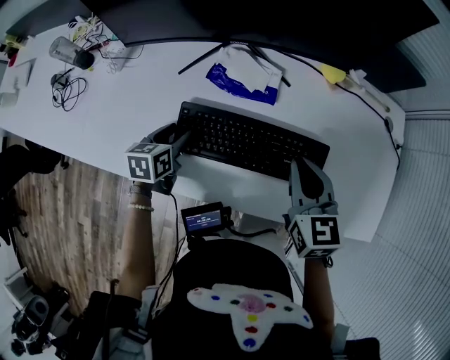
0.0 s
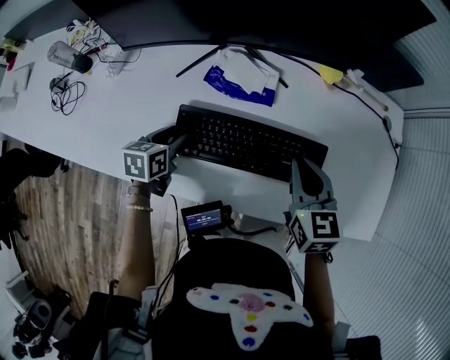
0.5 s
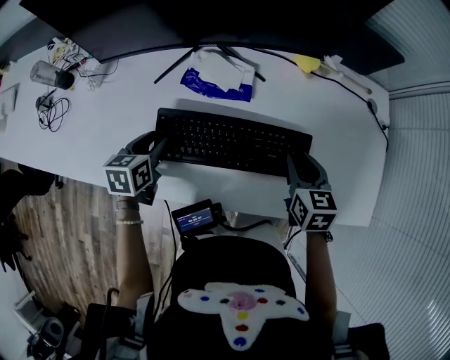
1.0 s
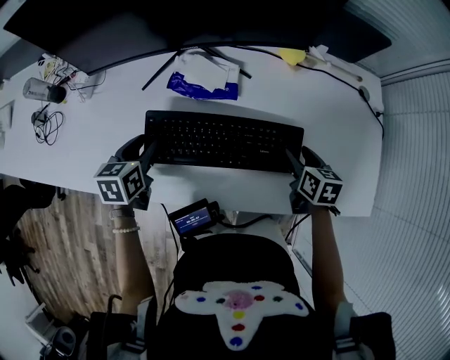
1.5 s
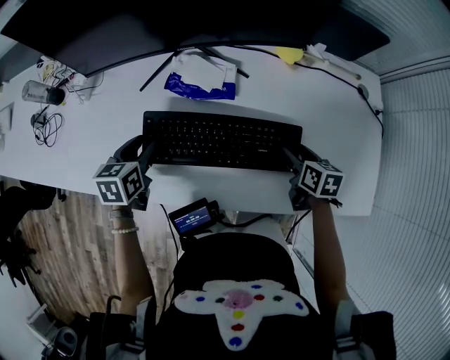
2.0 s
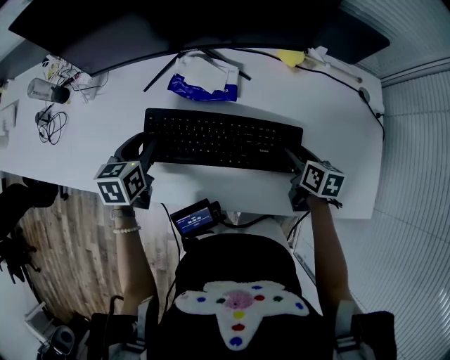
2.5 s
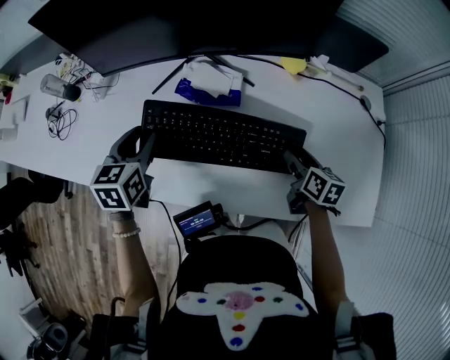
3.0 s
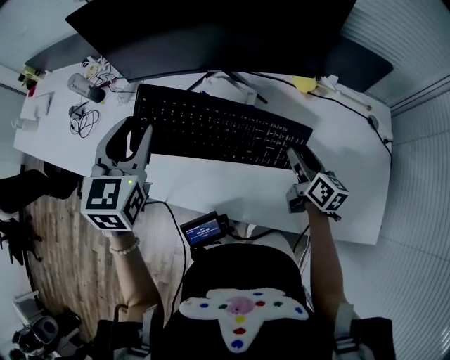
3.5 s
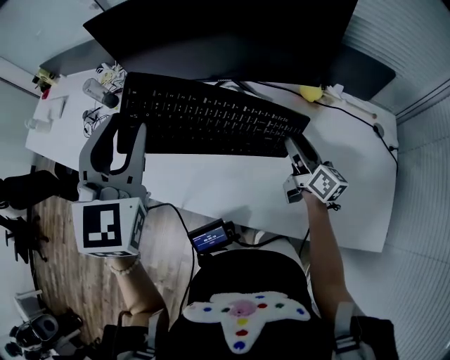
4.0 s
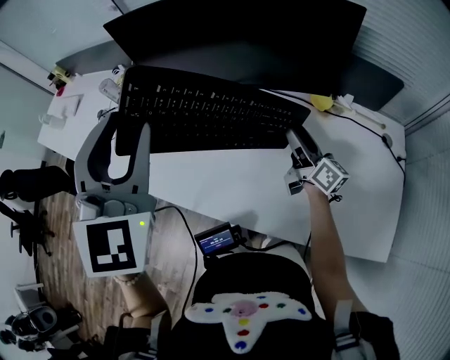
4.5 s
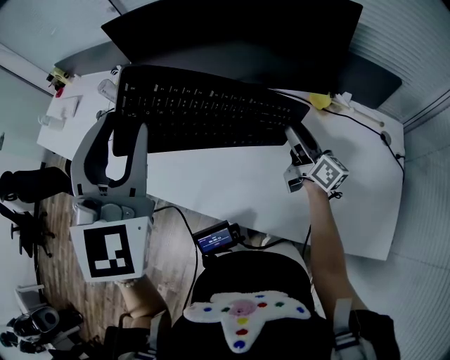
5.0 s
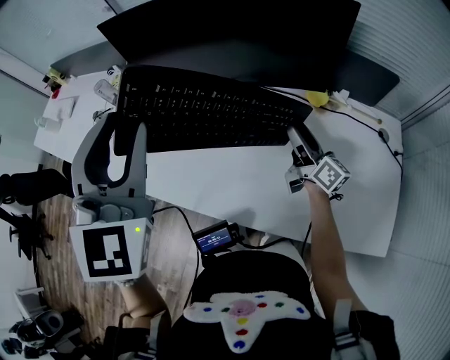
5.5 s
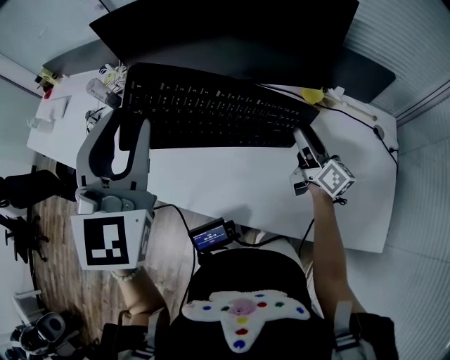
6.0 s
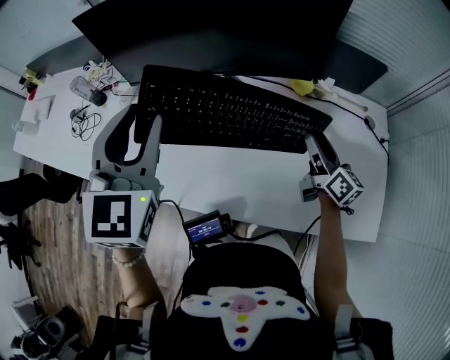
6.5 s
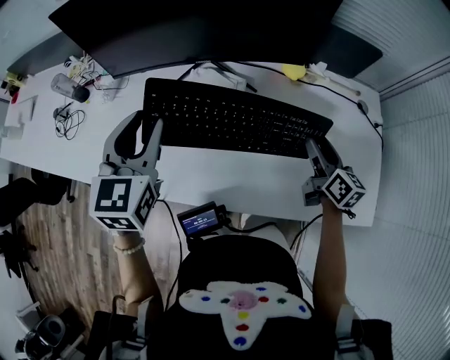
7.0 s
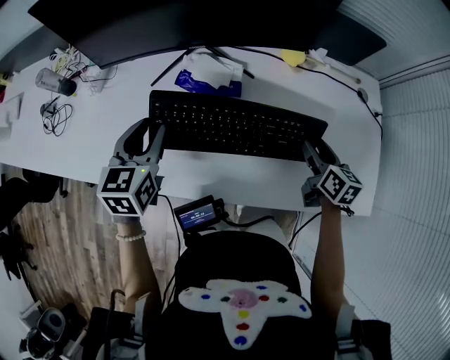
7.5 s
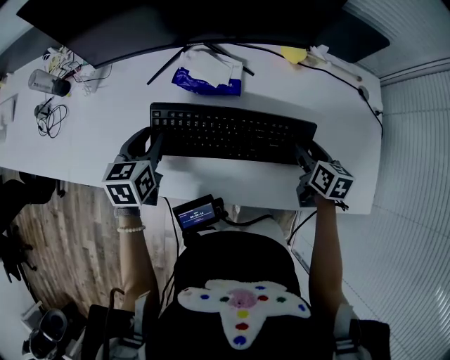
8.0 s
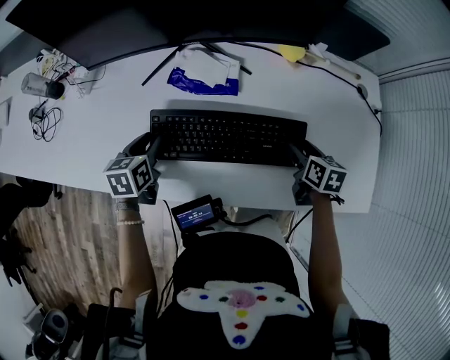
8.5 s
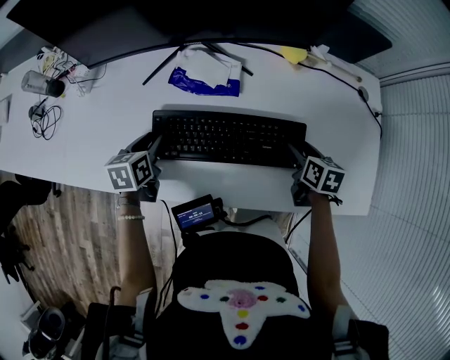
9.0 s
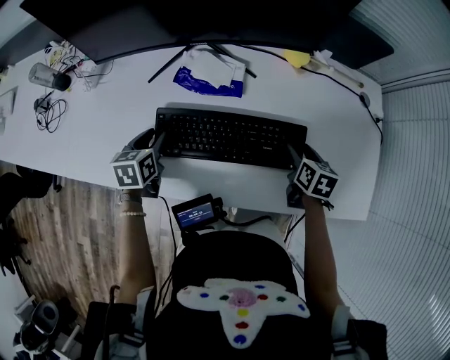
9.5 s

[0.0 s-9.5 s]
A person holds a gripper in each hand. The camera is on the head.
0.0 to 2.0 s: The right gripper travels downward and to the right by about 20 cm, swivels some 30 degrees, and opens up. The left gripper is displaced upward by roughly 5 cm.
2.0 to 4.0 s: The left gripper heads upward, covering some 35 cm, and angles its fingers upward, by about 40 degrees; the right gripper travels upward, forward and to the left by some 15 cm, and angles its fingers upward, by about 50 degrees.
4.0 to 5.5 s: The left gripper ends up approximately 5 cm from where it was.
5.5 to 7.5 s: The right gripper is displaced backward and to the right by approximately 15 cm, and tips its fingers downward by about 40 degrees. The left gripper travels downward by some 25 cm, and rotates roughly 50 degrees.
7.5 to 9.5 s: The right gripper moves downward, roughly 5 cm; the left gripper moves downward, approximately 15 cm, and turns by about 20 degrees.

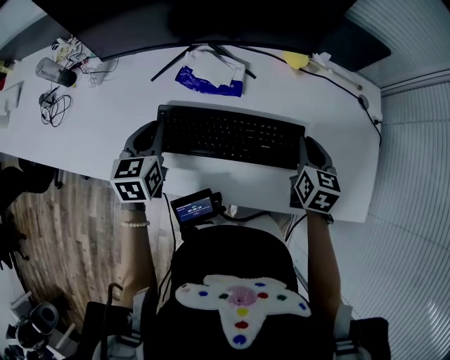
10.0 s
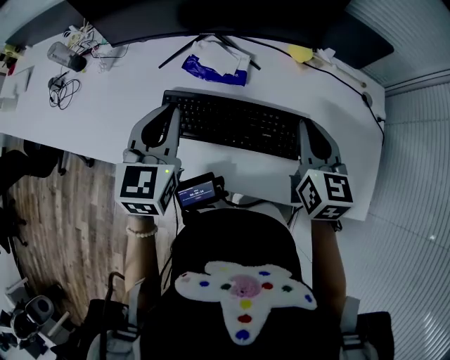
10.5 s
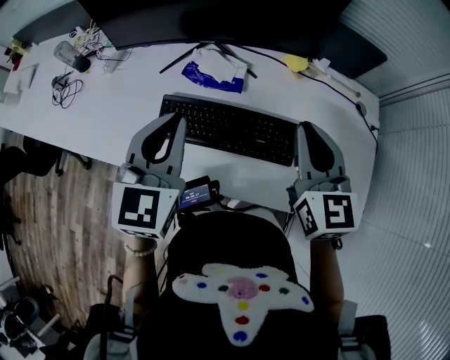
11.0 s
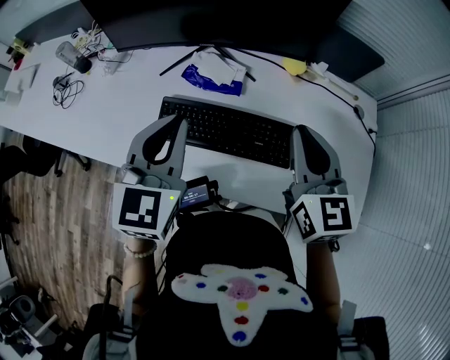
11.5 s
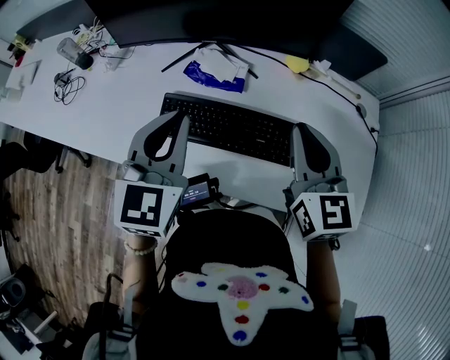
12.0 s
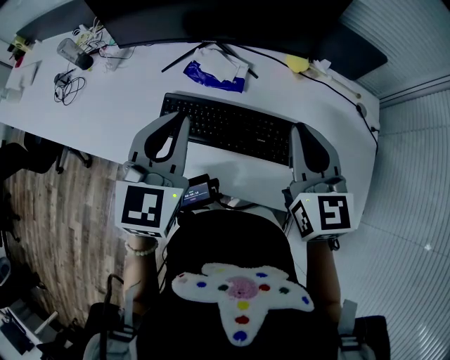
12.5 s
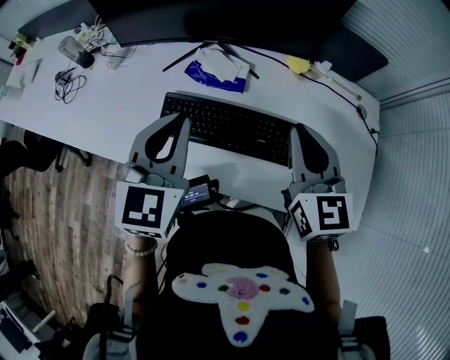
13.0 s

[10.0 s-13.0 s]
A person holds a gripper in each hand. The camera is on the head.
10.0 to 11.5 s: The left gripper is displaced upward and to the right by approximately 20 cm, and rotates roughly 20 degrees. Meanwhile the right gripper heads upward and to the left, covering some 20 cm, and turns by roughly 30 degrees.
11.5 to 13.0 s: Both grippers stay put.

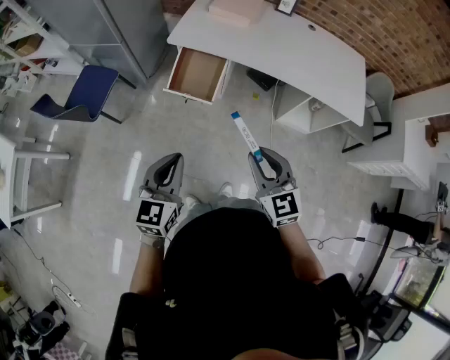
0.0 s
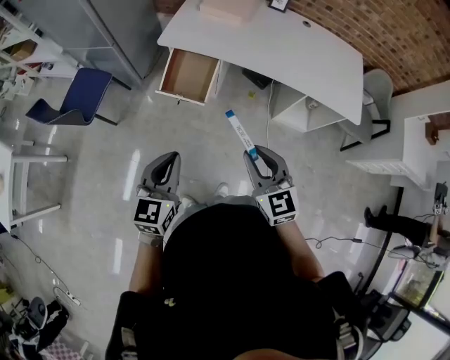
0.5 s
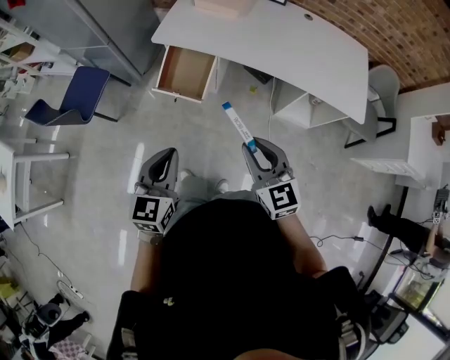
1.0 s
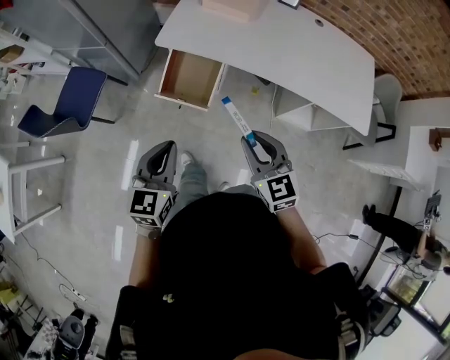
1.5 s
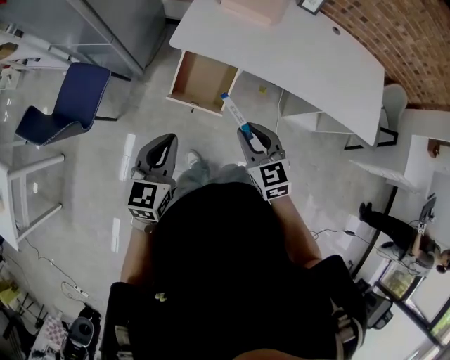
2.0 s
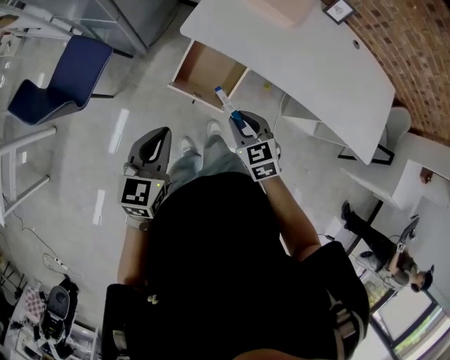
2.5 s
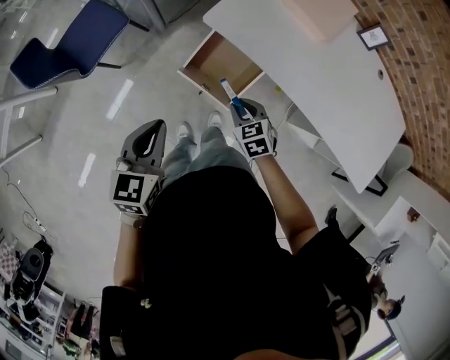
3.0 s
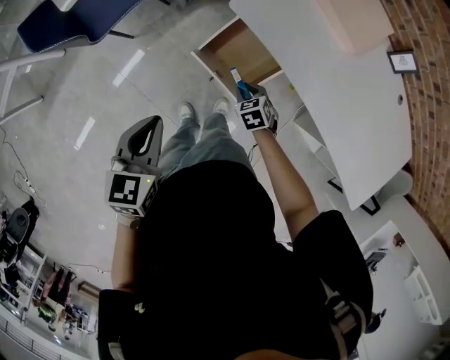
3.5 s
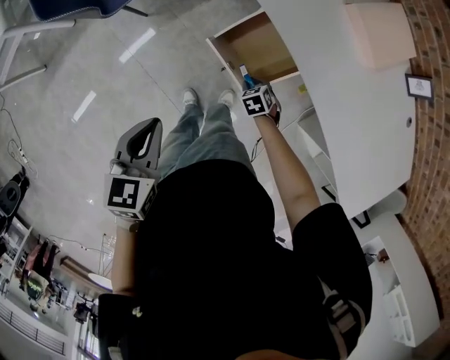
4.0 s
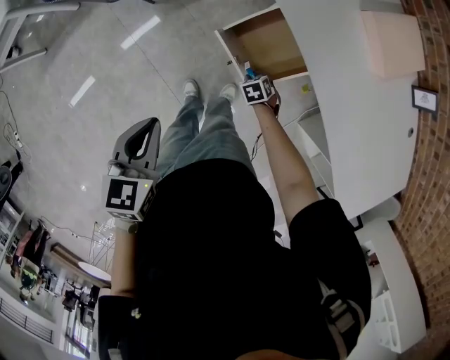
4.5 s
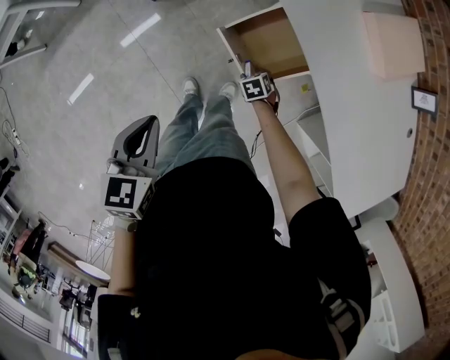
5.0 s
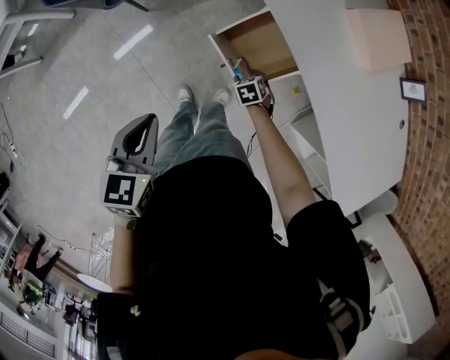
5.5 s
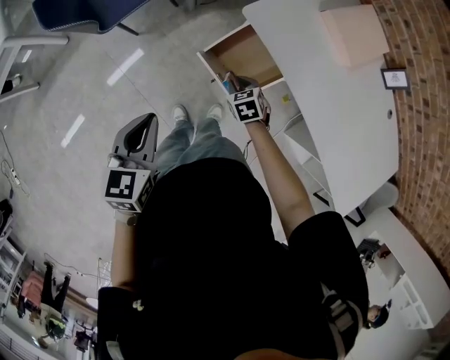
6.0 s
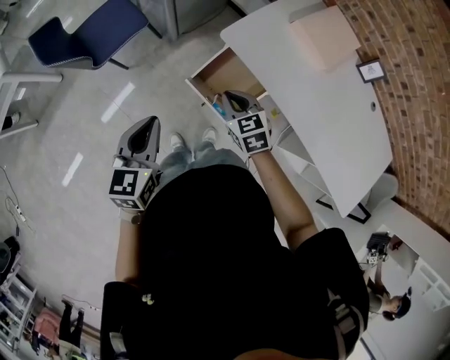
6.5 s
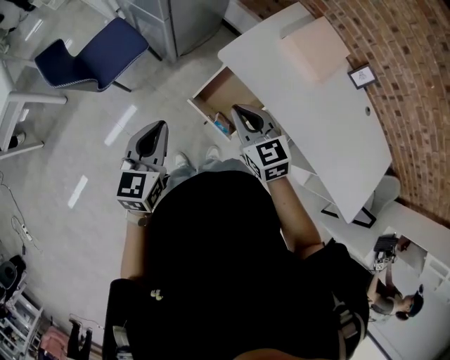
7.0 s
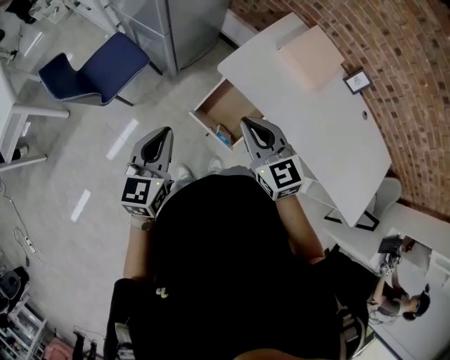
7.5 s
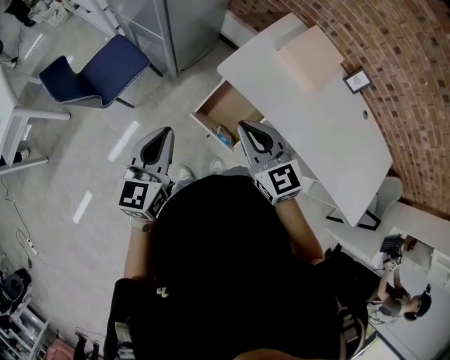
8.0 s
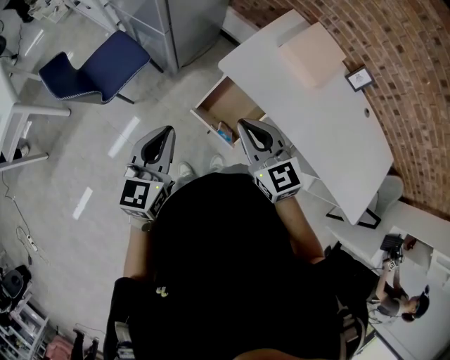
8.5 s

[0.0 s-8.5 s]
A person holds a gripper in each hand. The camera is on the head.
0.0 to 2.0 s: The grippers both shift forward by roughly 25 cm.
2.0 to 4.0 s: The right gripper shifts some 35 cm downward, and tilts its fingers about 40 degrees downward. The left gripper travels downward by approximately 5 cm, and changes its angle by roughly 40 degrees.
4.0 to 6.5 s: The right gripper goes about 25 cm upward, swivels roughly 30 degrees, and opens, then closes again, while the left gripper ends up roughly 5 cm from where it was.
6.5 to 8.5 s: The right gripper travels upward by some 20 cm, and turns by some 20 degrees, while the left gripper travels upward by roughly 5 cm.

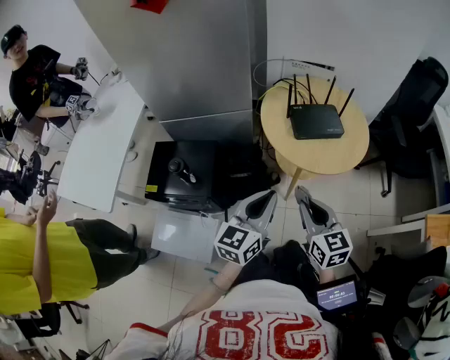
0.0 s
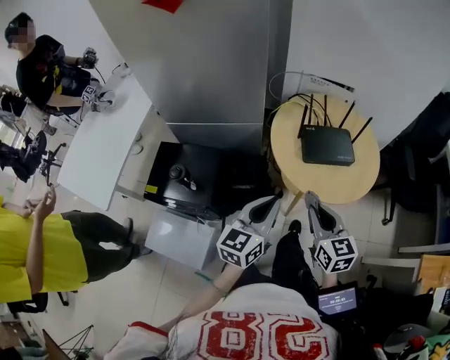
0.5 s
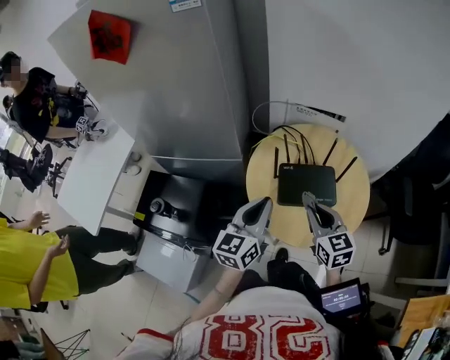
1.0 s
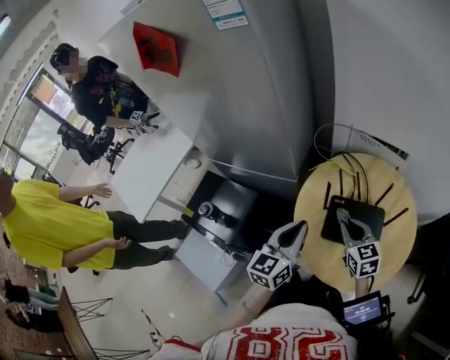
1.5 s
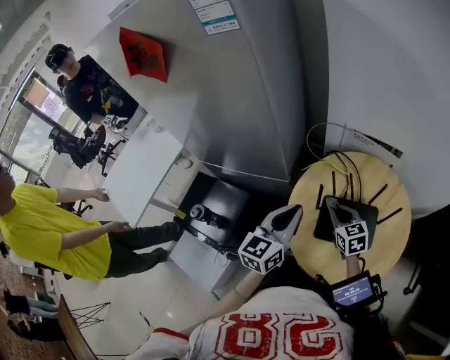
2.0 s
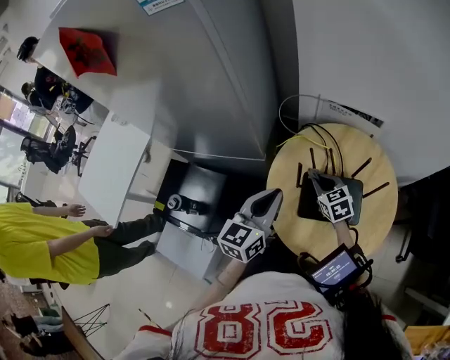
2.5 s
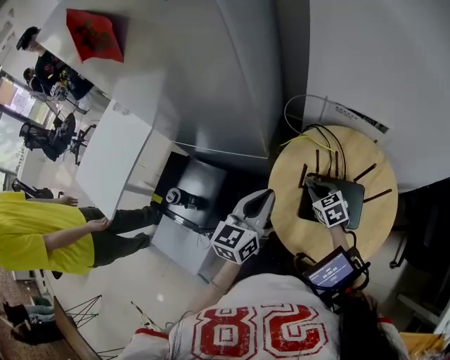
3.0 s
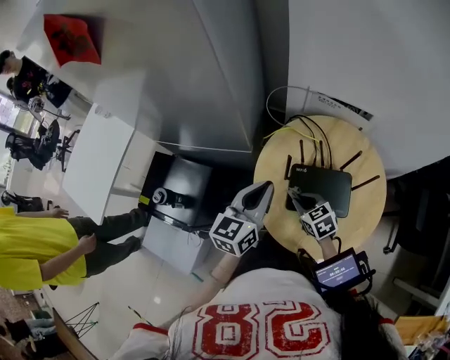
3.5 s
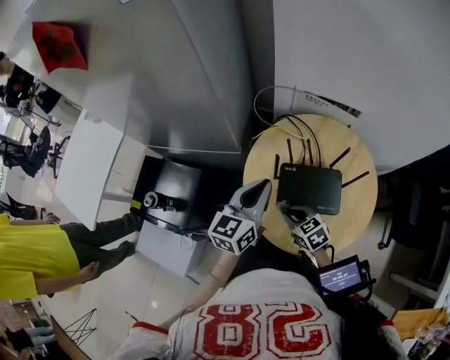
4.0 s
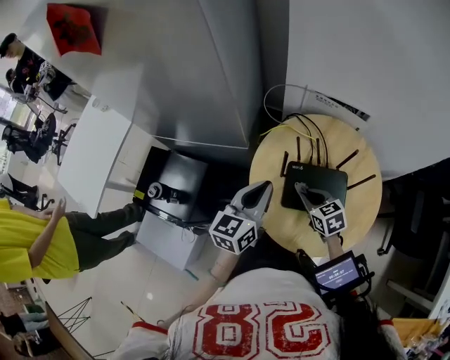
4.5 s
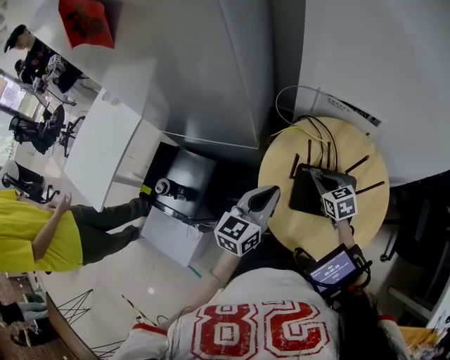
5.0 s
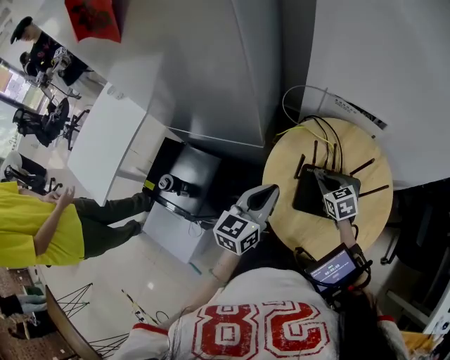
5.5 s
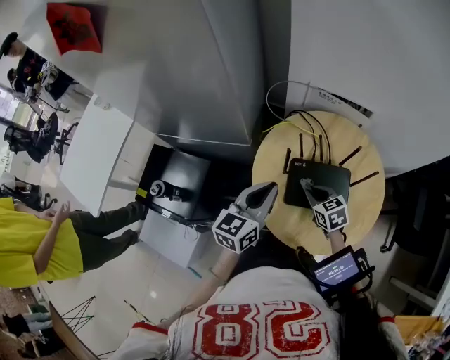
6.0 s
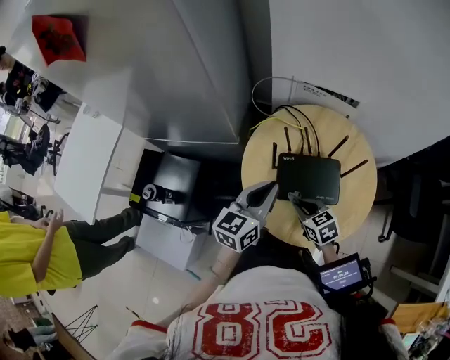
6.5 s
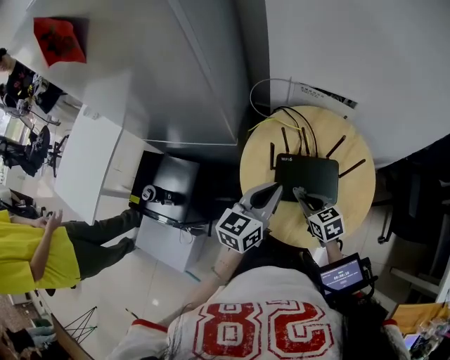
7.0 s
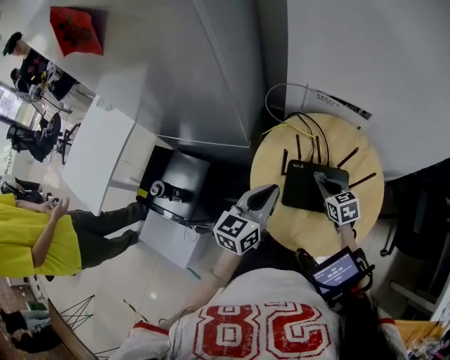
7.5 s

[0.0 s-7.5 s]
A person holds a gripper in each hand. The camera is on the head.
0.0 to 2.0 s: Both grippers travel together forward, roughly 35 cm. The right gripper swivels roughly 30 degrees.
2.0 to 4.0 s: The right gripper goes about 15 cm backward and downward.
4.0 to 5.5 s: The right gripper shifts roughly 15 cm forward and to the right.
5.5 to 7.5 s: The right gripper goes backward and returns, approximately 15 cm each way.
